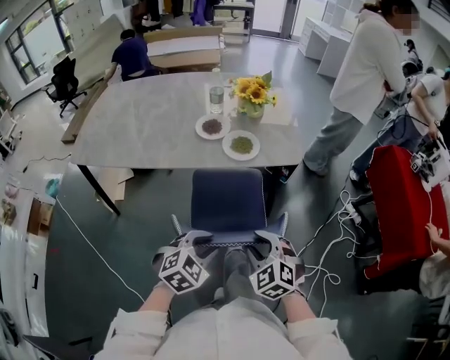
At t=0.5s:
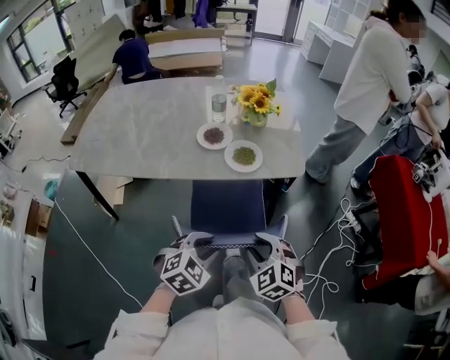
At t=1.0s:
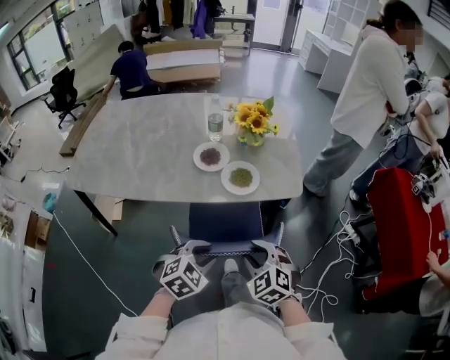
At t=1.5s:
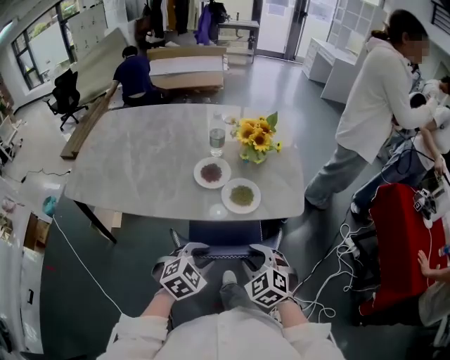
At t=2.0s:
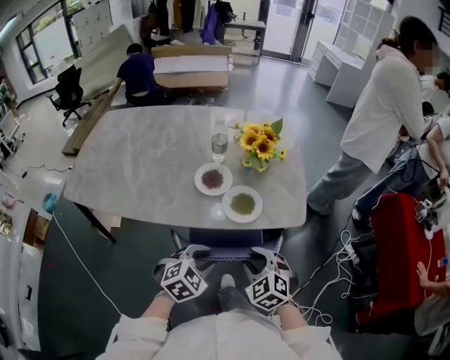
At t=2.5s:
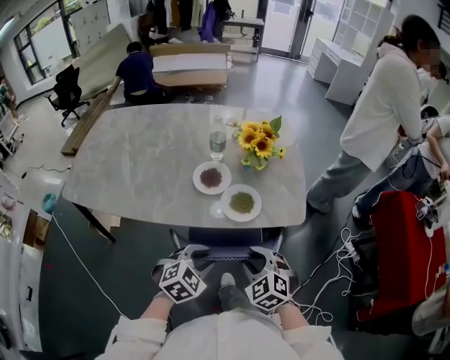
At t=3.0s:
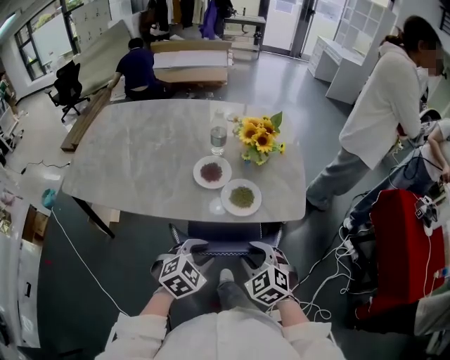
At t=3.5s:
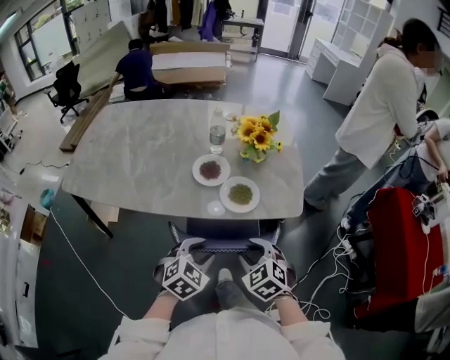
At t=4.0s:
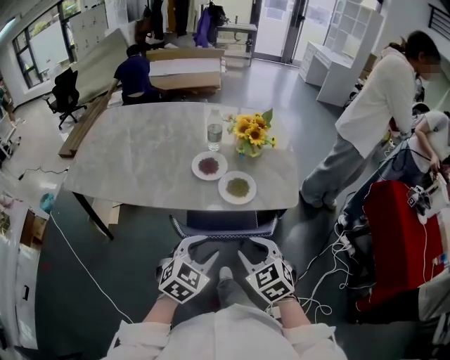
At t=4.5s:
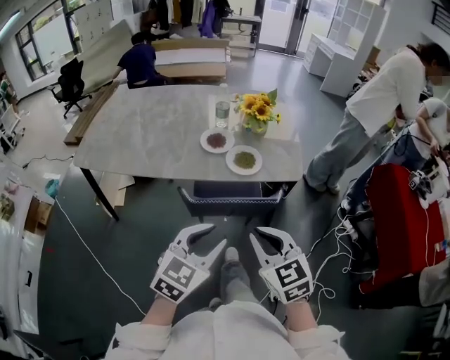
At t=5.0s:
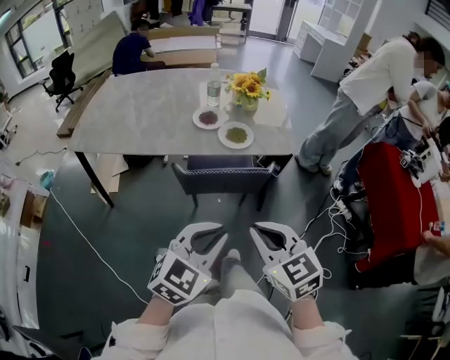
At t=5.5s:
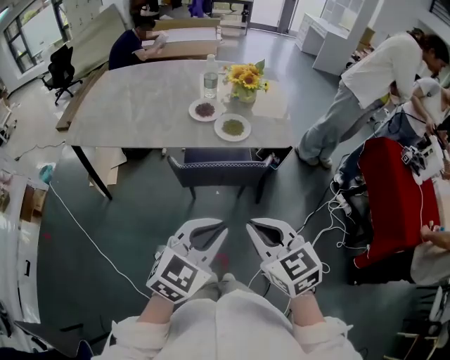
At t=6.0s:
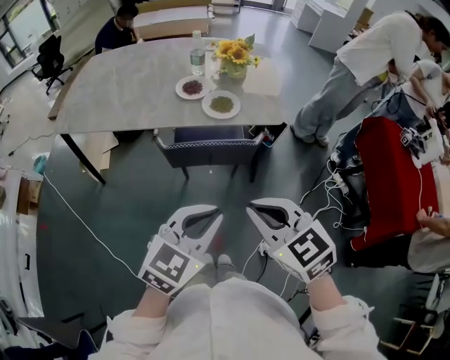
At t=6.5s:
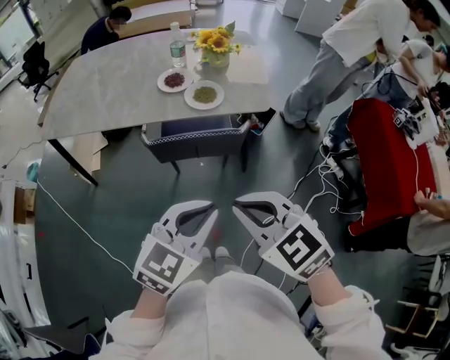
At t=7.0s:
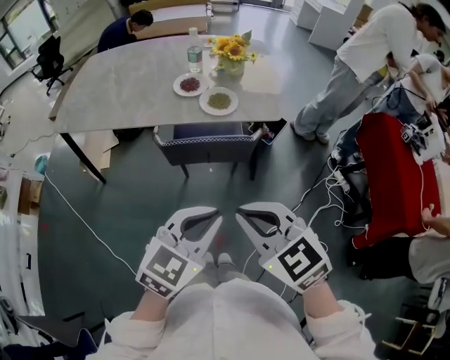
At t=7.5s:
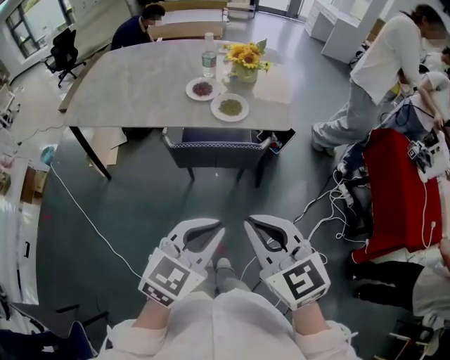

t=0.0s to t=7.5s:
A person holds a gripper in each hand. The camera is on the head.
t=0.0s to t=2.0s: Both grippers move forward, about 20 cm.
t=2.0s to t=4.0s: The left gripper travels upward by roughly 5 cm, while the right gripper travels backward by roughly 5 cm.
t=4.0s to t=5.5s: The grippers both shift backward and upward by approximately 20 cm. The left gripper closes up. Meanwhile the right gripper closes up.
t=5.5s to t=7.5s: The right gripper ends up roughly 5 cm from where it was.

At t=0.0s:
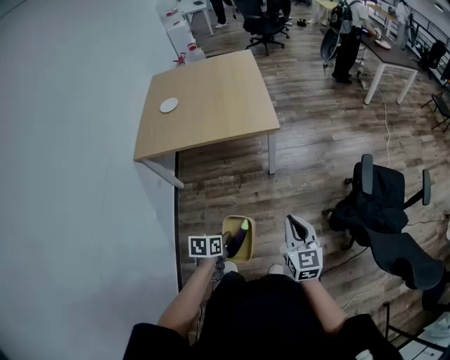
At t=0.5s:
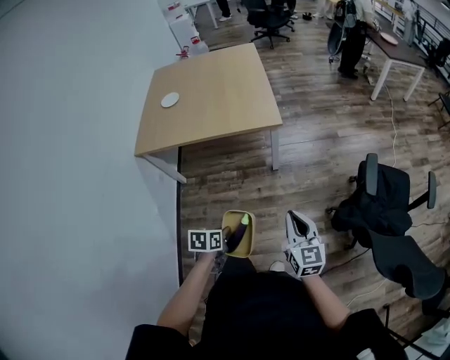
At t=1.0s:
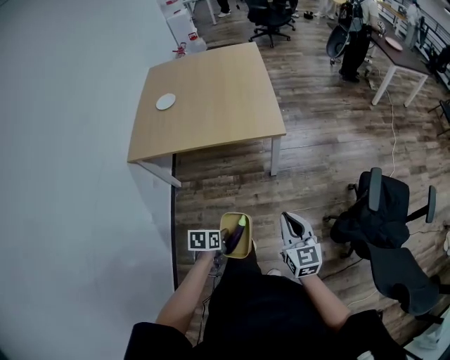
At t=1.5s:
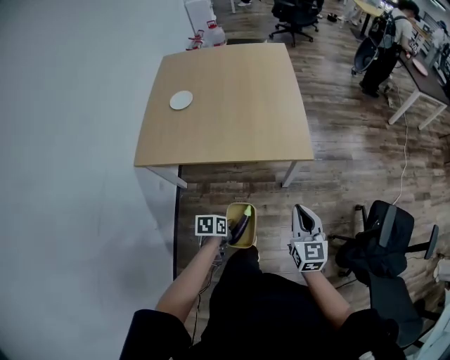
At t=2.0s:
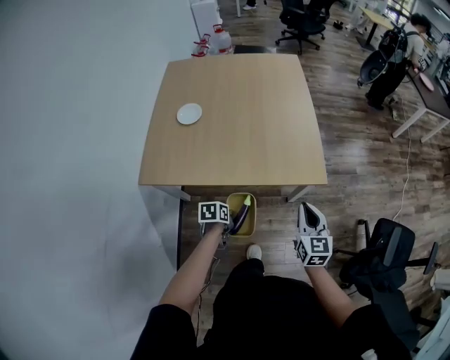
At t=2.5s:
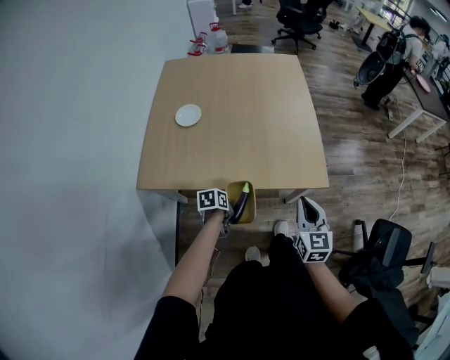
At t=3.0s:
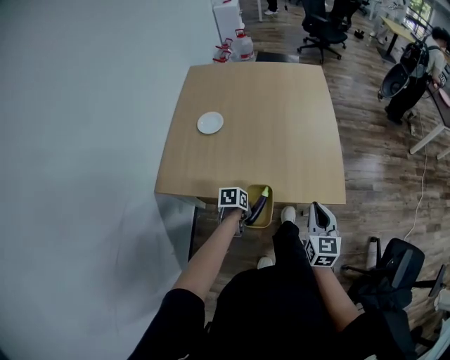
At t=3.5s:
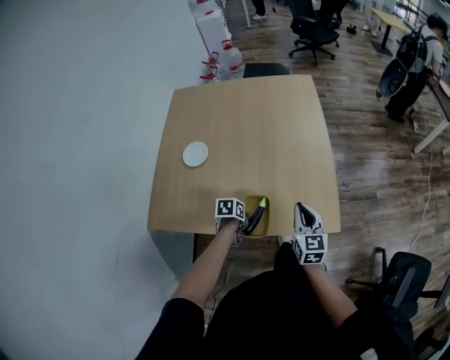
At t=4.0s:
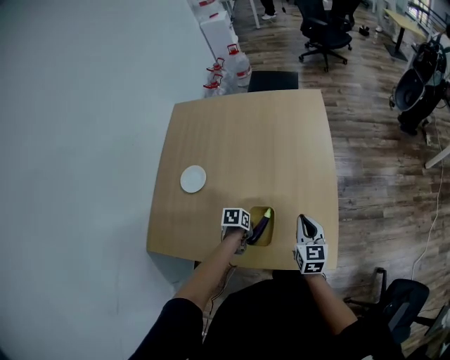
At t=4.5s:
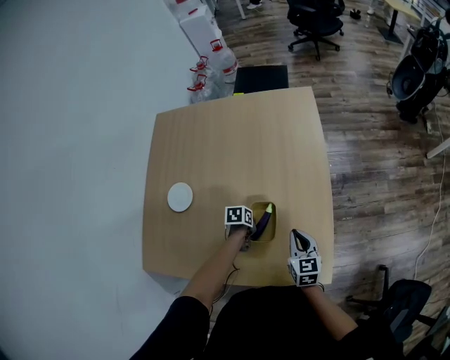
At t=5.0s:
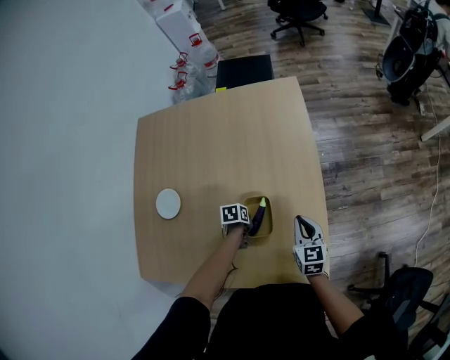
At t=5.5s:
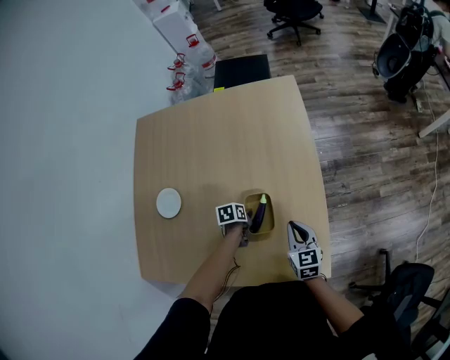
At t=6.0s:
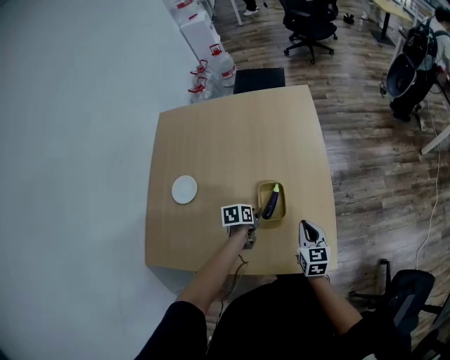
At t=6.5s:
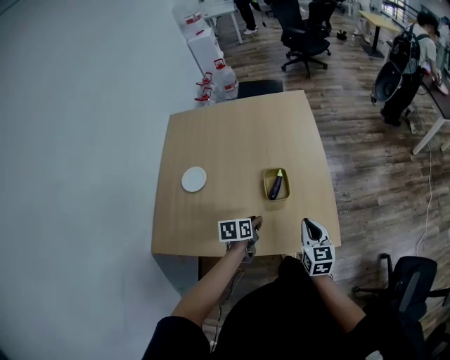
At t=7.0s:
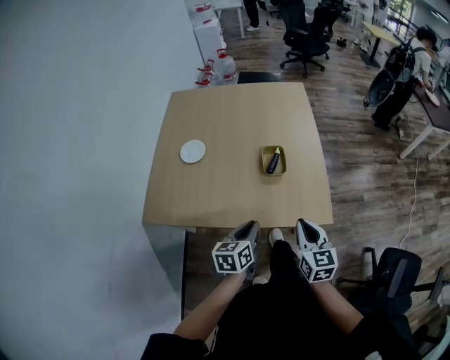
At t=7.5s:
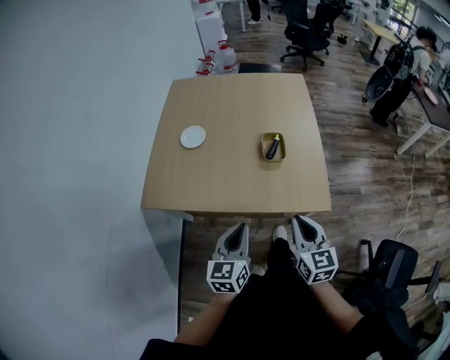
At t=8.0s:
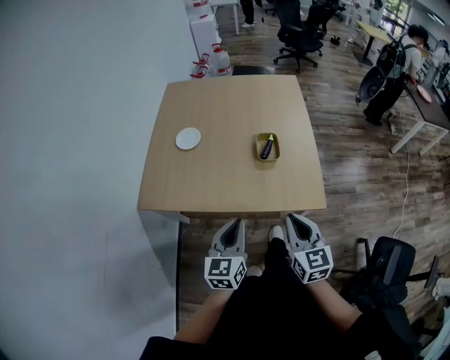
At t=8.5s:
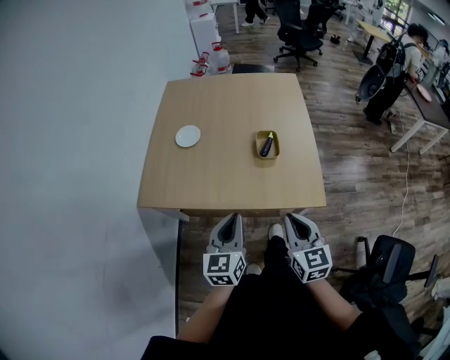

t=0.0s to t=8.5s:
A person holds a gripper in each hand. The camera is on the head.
t=0.0s to t=2.0s: The two grippers travel together, forward and to the left, about 40 cm.
t=2.0s to t=4.0s: Both grippers move forward, roughly 35 cm.
t=4.0s to t=6.5s: The right gripper is displaced backward by roughly 10 cm. Meanwhile the left gripper heads upward, covering about 10 cm, goes forward and returns, approximately 15 cm each way, and rotates some 20 degrees.
t=6.5s to t=8.5s: The grippers both shift backward and upward by roughly 25 cm. The left gripper tilts its fingers approximately 30 degrees upward.

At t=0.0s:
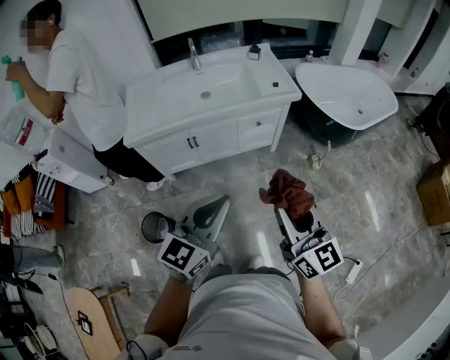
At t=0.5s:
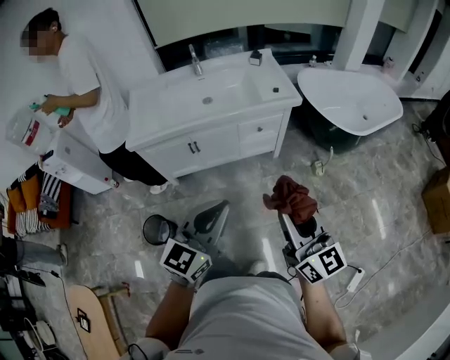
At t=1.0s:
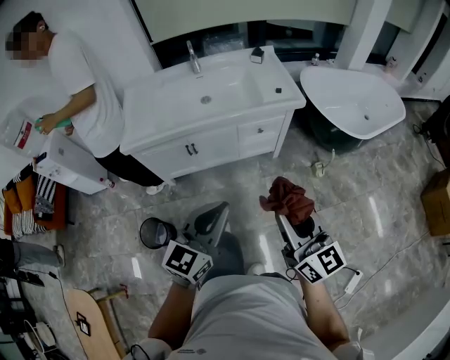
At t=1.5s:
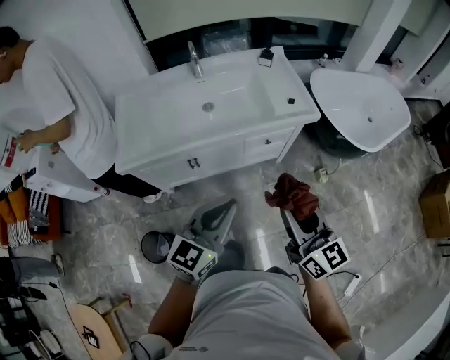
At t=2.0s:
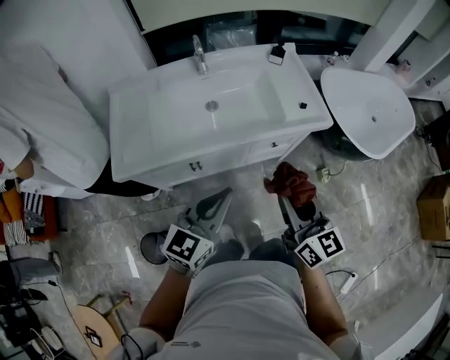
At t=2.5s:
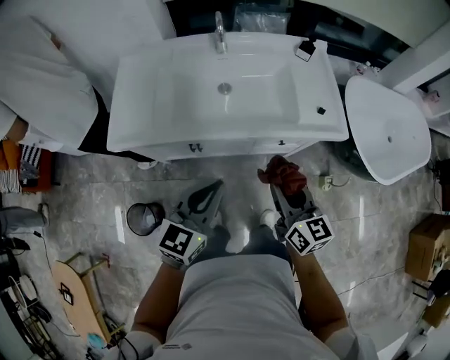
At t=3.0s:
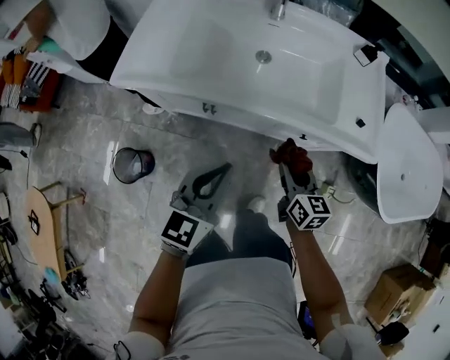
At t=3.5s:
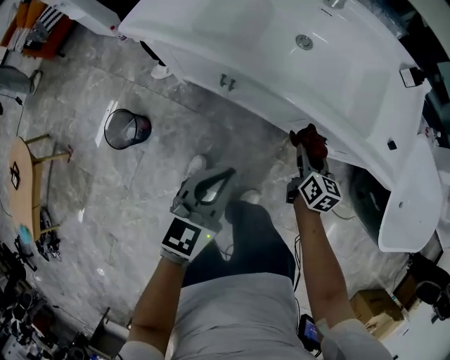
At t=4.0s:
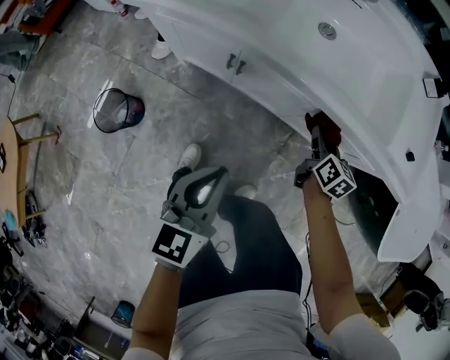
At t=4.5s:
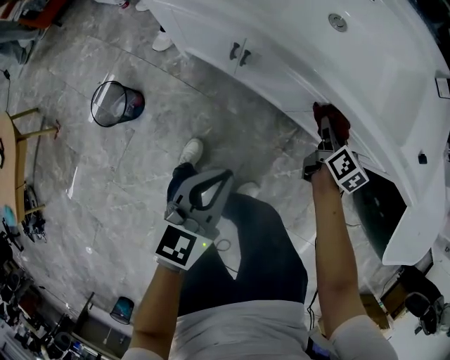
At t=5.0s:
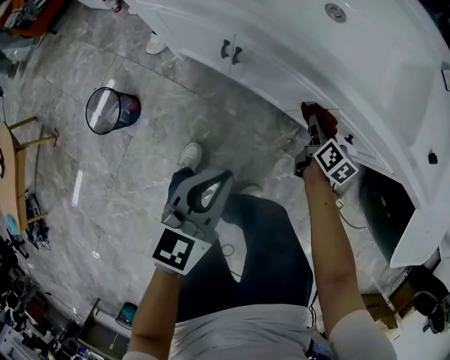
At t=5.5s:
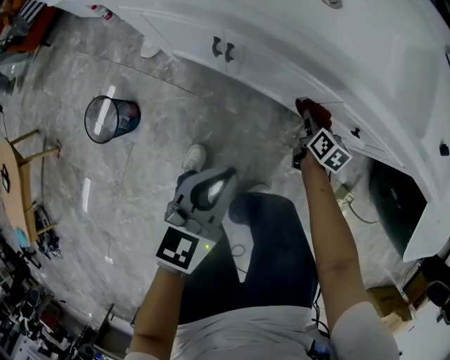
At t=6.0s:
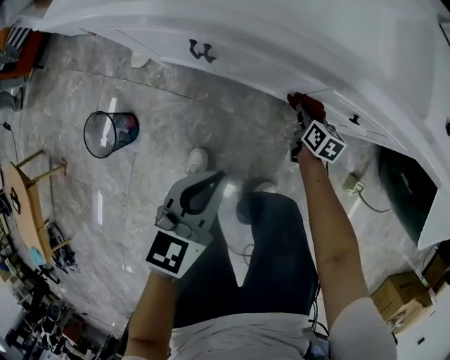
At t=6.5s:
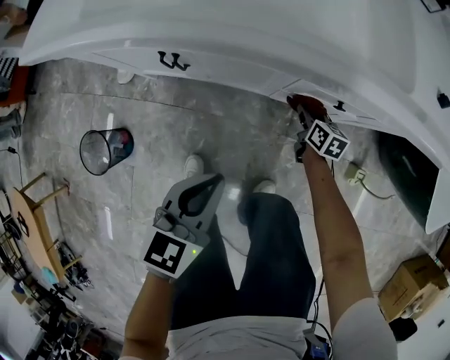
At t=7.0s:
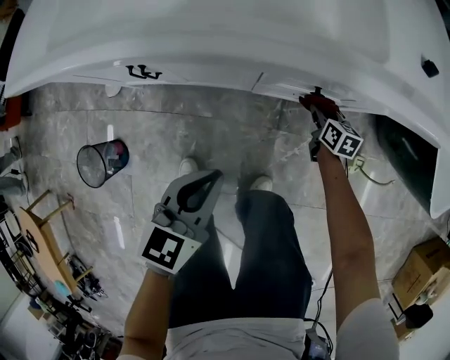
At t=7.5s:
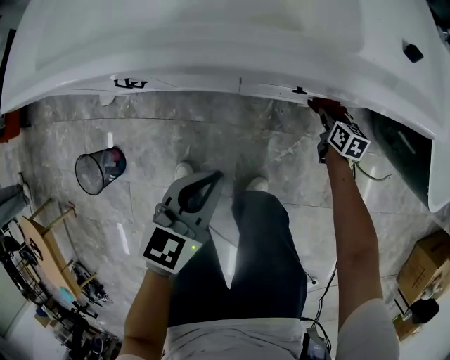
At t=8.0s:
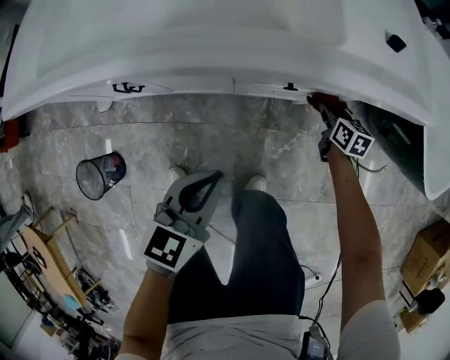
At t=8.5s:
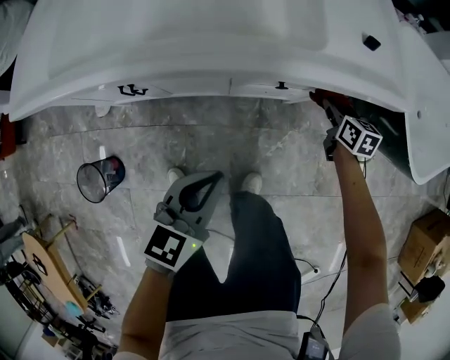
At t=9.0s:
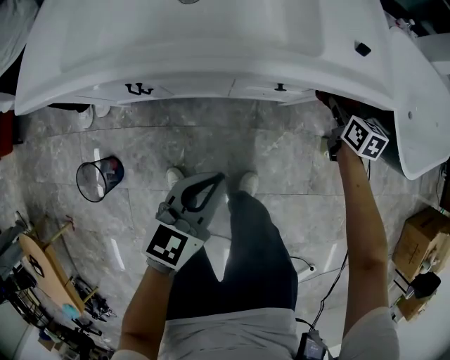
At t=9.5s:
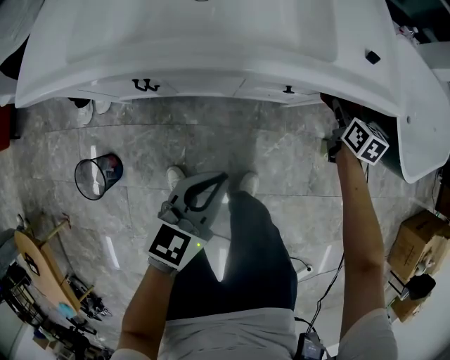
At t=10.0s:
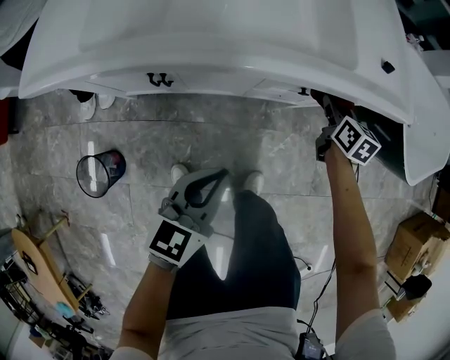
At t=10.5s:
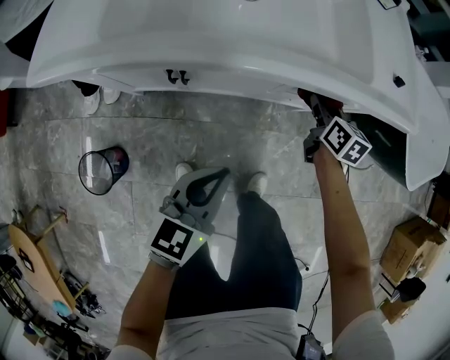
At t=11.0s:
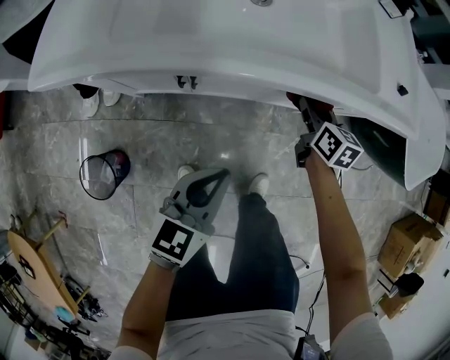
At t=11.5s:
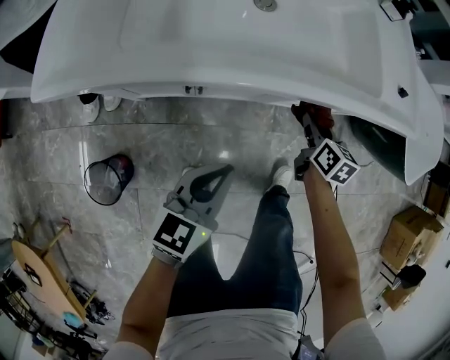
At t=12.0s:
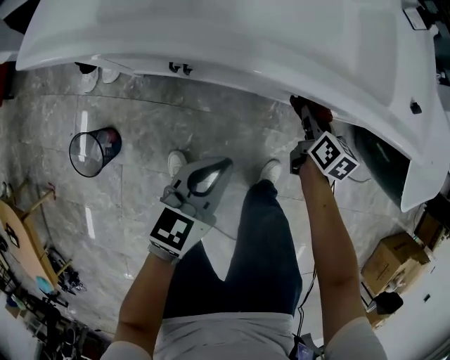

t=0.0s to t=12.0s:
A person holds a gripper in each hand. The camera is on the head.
t=0.0s to t=2.0s: The two grippers go approximately 30 cm forward.
t=2.0s to t=4.0s: The left gripper shifts approximately 25 cm downward, and swivels about 50 degrees. Meanwhile the right gripper is displaced downward by some 40 cm, and turns by approximately 30 degrees.
t=4.0s to t=6.0s: The right gripper moves downward, approximately 20 cm, while the left gripper travels downward by some 10 cm.
t=6.0s to t=8.0s: The right gripper heads to the right, covering about 25 cm; the left gripper travels to the right by roughly 15 cm.
t=8.0s to t=10.0s: The left gripper travels to the left and upward by roughly 10 cm, while the right gripper shifts some 20 cm upward and to the left.
t=10.0s to t=12.0s: The right gripper shifts approximately 10 cm to the left and downward.
